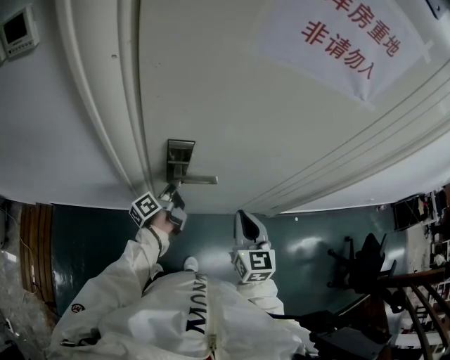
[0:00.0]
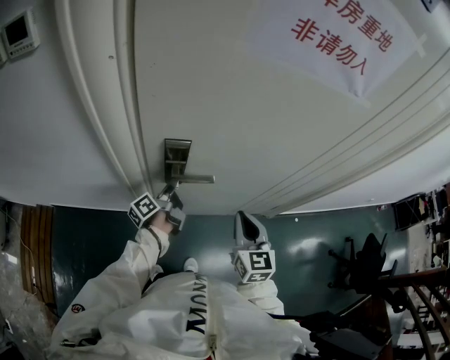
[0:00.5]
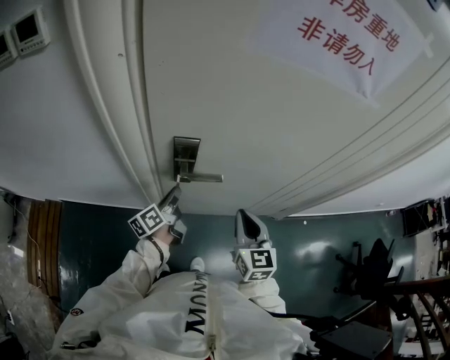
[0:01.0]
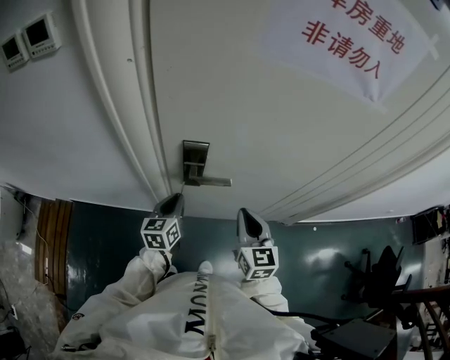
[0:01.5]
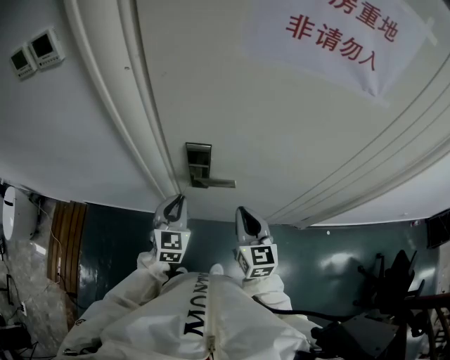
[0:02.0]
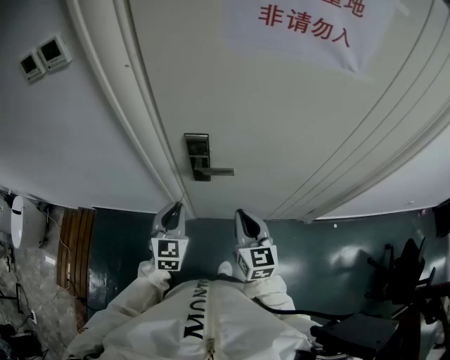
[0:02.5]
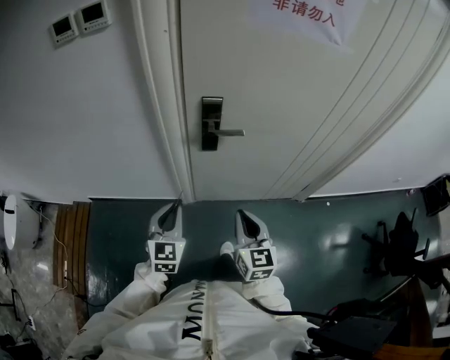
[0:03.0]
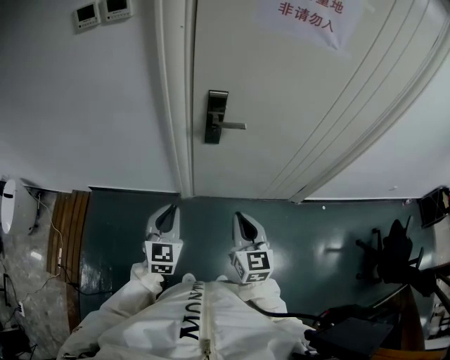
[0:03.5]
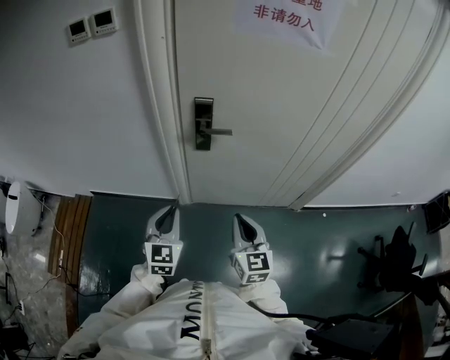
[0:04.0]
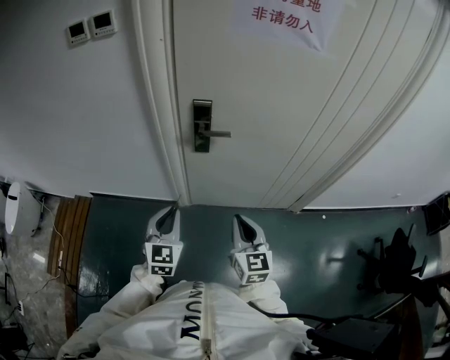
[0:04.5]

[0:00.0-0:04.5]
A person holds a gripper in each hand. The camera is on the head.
0:00.0 to 0:02.0: The left gripper is displaced upward and backward by approximately 15 cm, and twists about 90 degrees clockwise, seen from behind; the right gripper changes place by about 5 cm.
0:02.0 to 0:04.5: Both grippers travel together backward, approximately 25 cm.

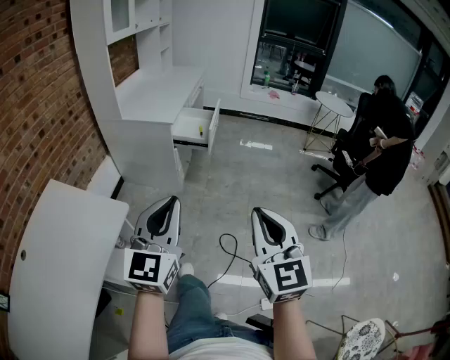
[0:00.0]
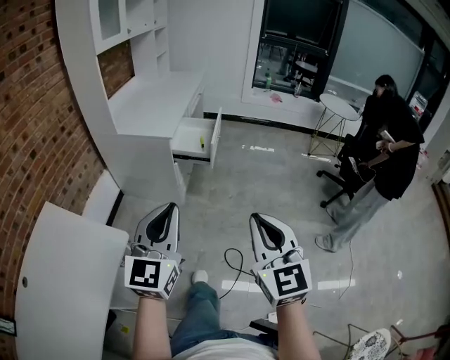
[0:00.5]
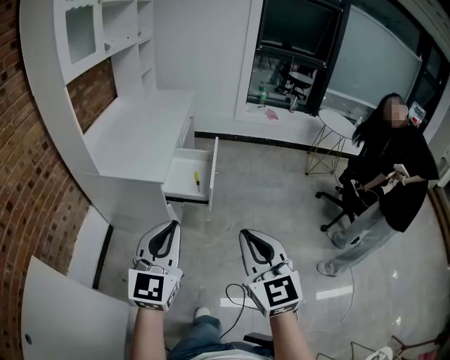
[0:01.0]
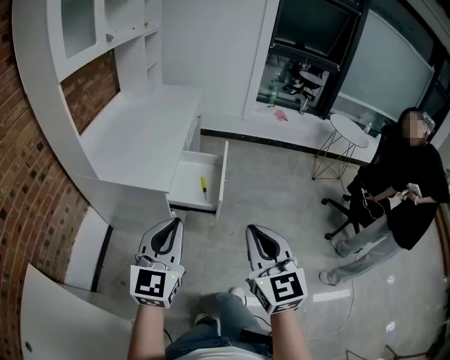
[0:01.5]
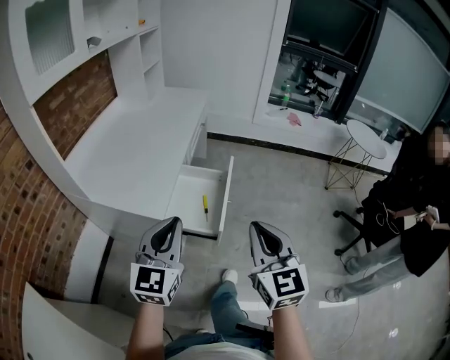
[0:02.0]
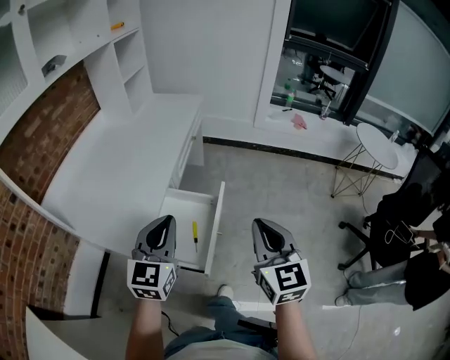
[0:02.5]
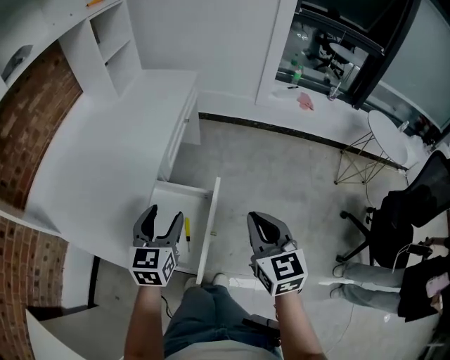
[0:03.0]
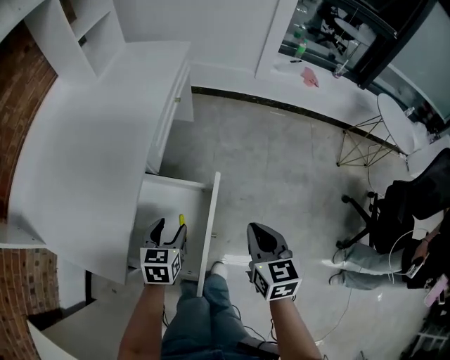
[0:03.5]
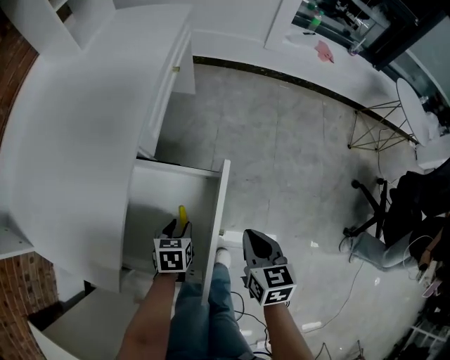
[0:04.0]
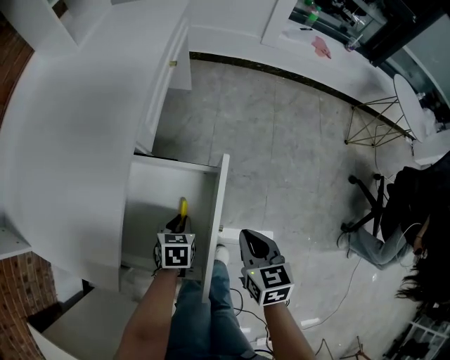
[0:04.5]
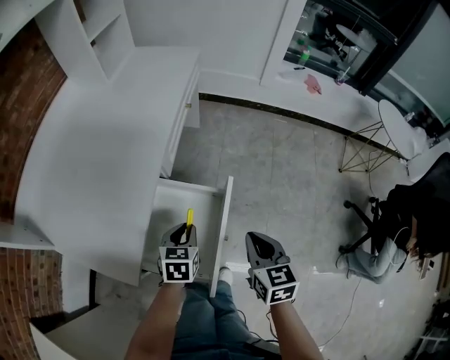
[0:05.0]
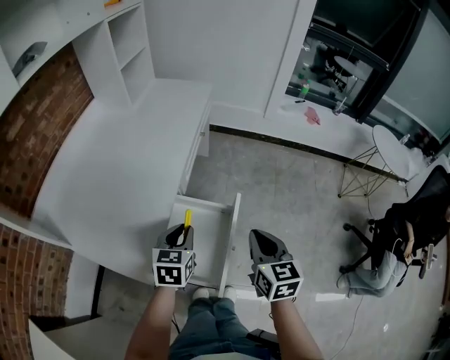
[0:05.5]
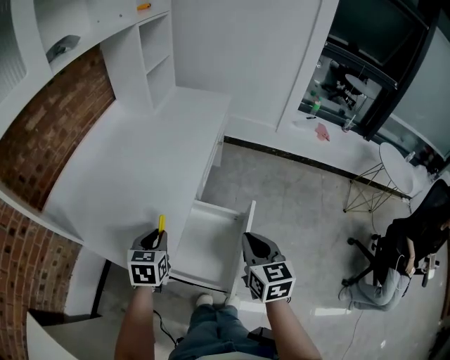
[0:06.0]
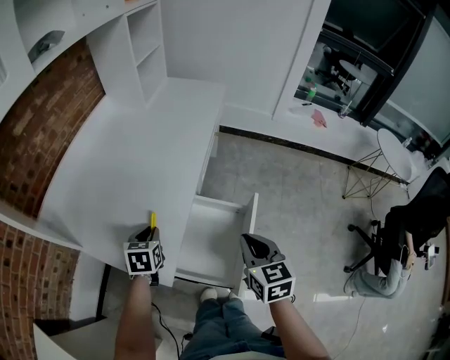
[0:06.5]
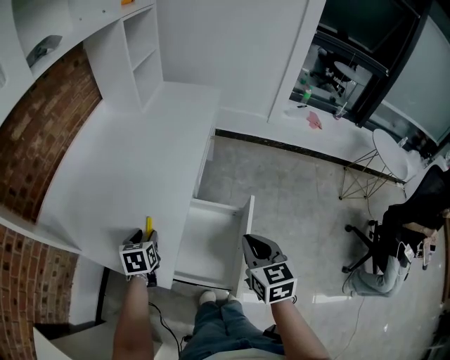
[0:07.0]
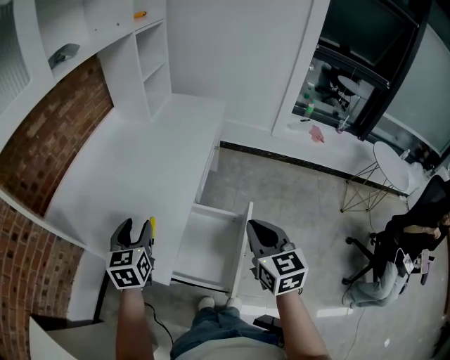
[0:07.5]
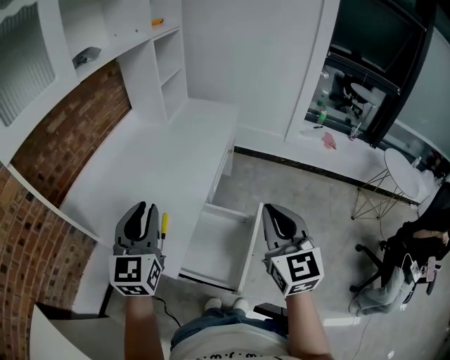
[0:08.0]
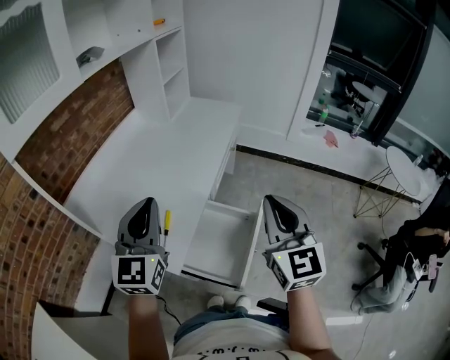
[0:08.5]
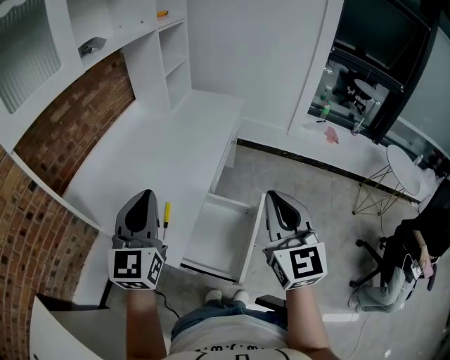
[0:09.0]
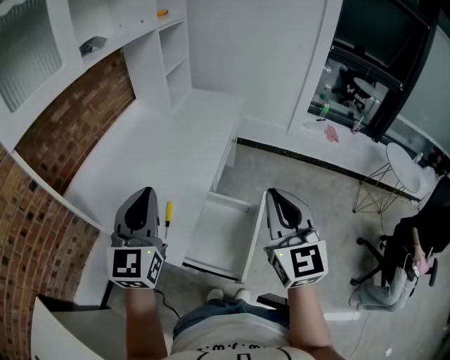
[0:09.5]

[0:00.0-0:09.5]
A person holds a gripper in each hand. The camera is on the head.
0:00.0 to 0:02.0: The pair of grippers is taken forward, about 60 cm.
0:02.0 to 0:04.0: Both grippers move downward and forward, roughly 50 cm. The left gripper points its fingers some 60 degrees further downward, and opens. Meanwhile the right gripper tips its fingers downward by about 30 degrees.
0:04.0 to 0:05.5: The grippers both shift upward by some 25 cm. The left gripper changes its angle by about 30 degrees, and closes its fingers.
0:05.5 to 0:07.5: The left gripper goes approximately 20 cm to the left and upward, swivels about 20 degrees, and opens. Meanwhile the right gripper travels upward and to the left by approximately 10 cm.
0:07.5 to 0:09.5: Both grippers move upward, roughly 15 cm. The left gripper changes its angle by approximately 30 degrees, and closes its fingers; the right gripper changes its angle by approximately 20 degrees.

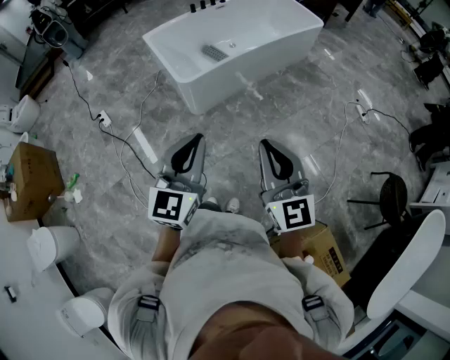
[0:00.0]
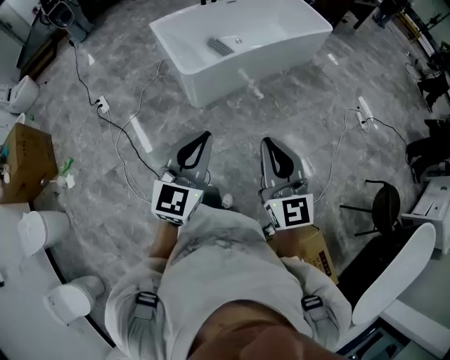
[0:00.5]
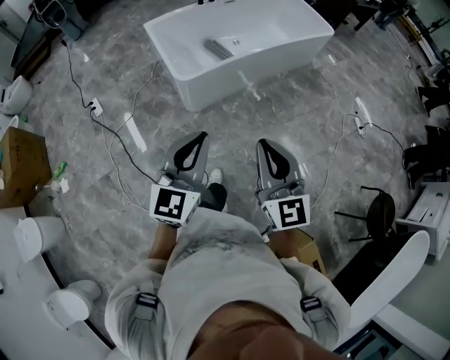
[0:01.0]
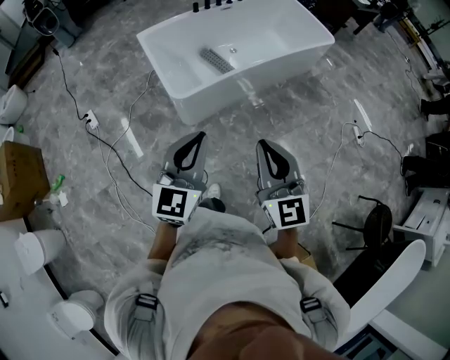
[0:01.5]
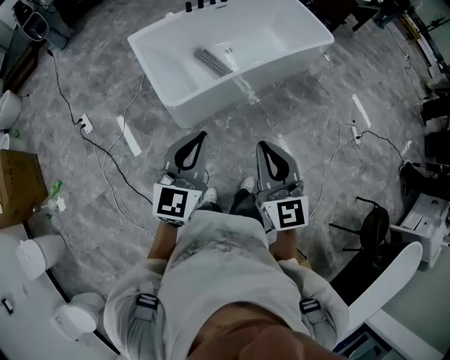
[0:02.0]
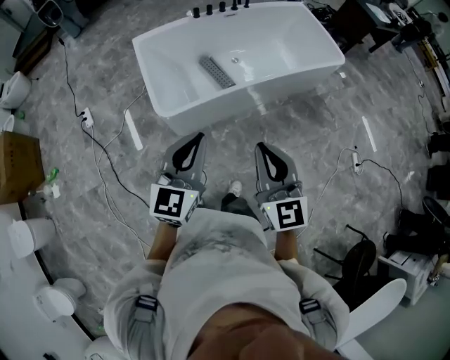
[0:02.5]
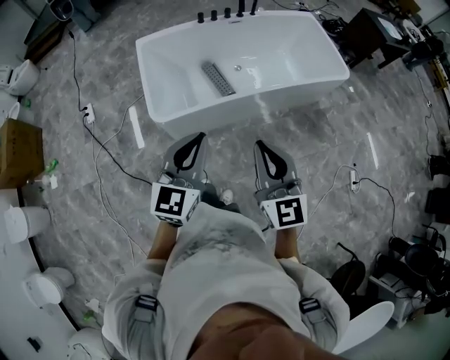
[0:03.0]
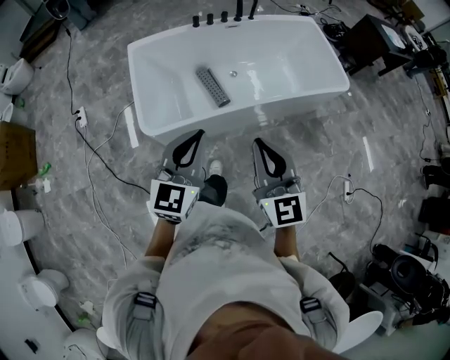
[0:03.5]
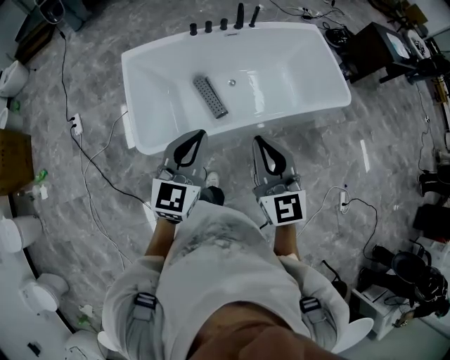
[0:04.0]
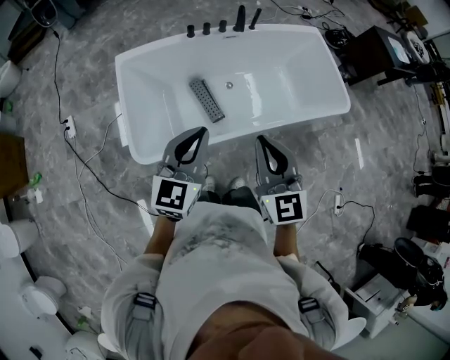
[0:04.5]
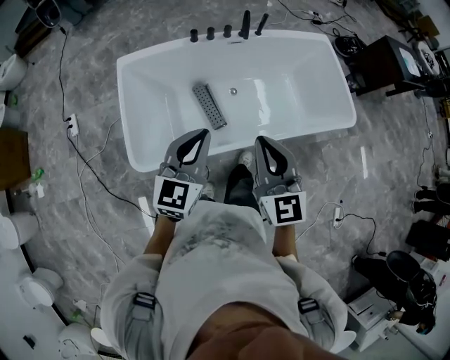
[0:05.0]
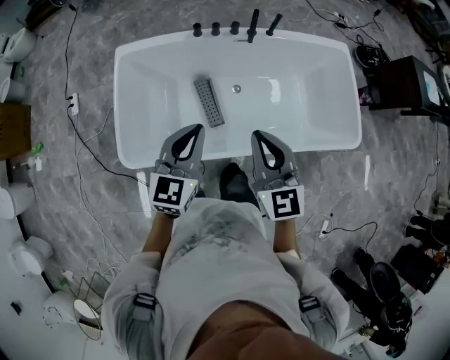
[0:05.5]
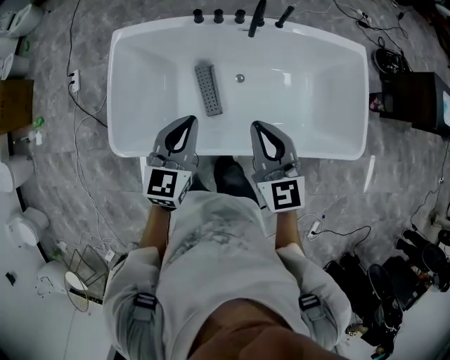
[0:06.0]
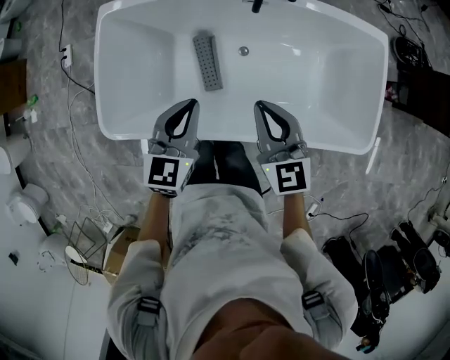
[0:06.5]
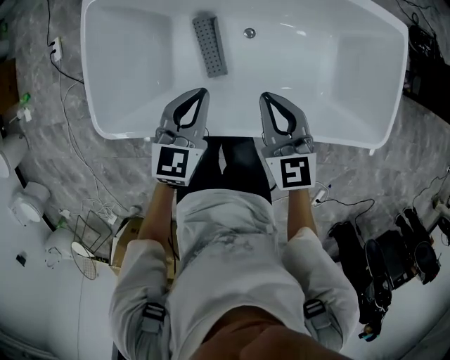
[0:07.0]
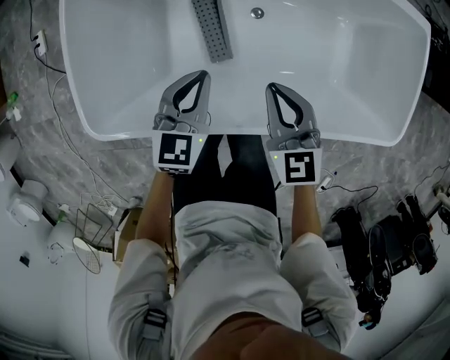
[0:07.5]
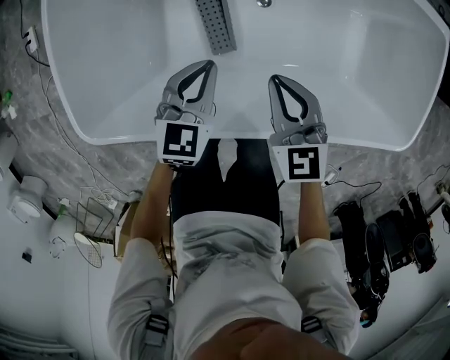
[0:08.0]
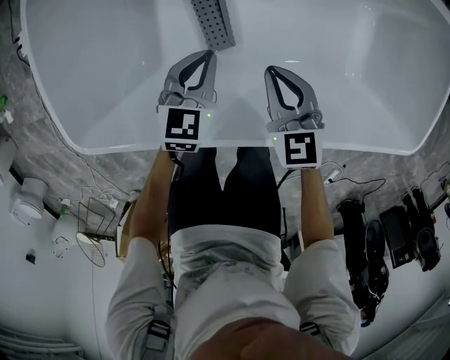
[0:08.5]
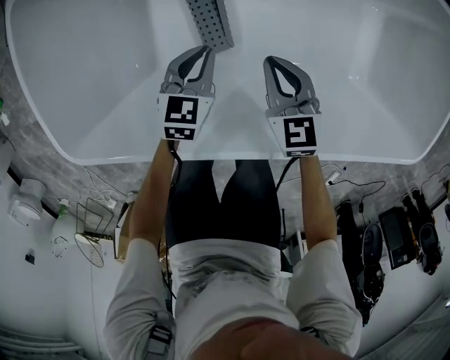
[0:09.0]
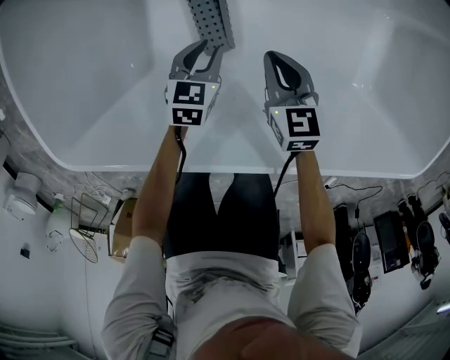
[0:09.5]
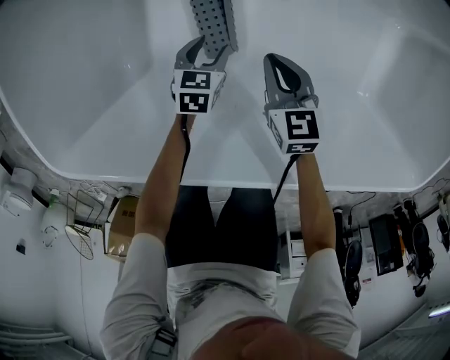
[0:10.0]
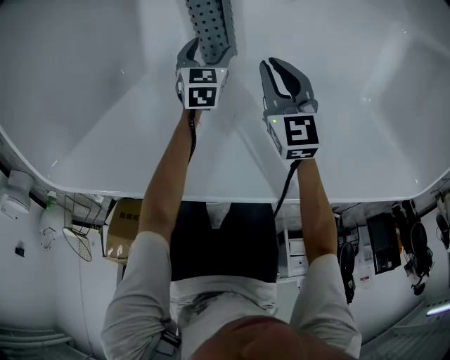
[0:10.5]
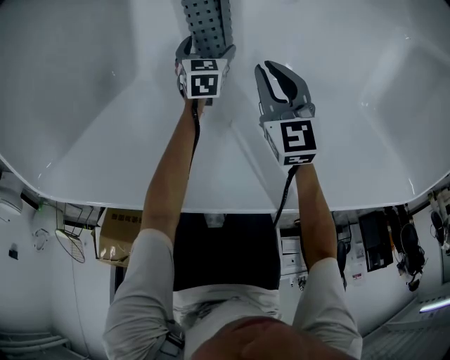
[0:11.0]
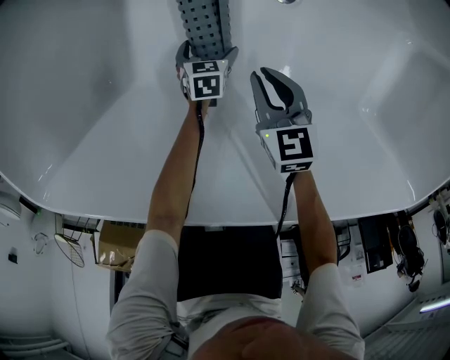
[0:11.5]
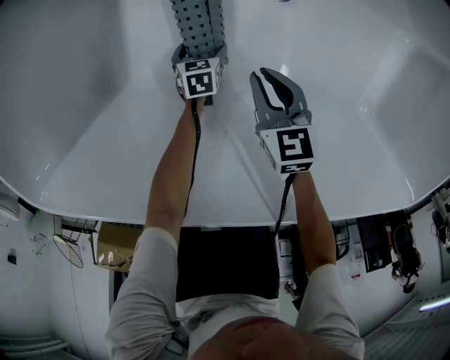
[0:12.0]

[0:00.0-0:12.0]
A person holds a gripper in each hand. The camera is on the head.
0:00.0 to 0:02.0: Both grippers travel together forward, about 30 cm.
0:02.0 to 0:04.0: Both grippers are carried forward and to the right, about 40 cm.
0:04.0 to 0:06.0: The grippers both shift forward and to the right by roughly 35 cm. The left gripper rotates some 20 degrees, while the right gripper rotates roughly 20 degrees.
0:06.0 to 0:08.0: The two grippers go some 35 cm downward.
0:08.0 to 0:10.0: The grippers both shift downward by roughly 30 cm. The left gripper changes its angle by some 30 degrees, and opens.
0:10.0 to 0:12.0: The left gripper is displaced downward by approximately 20 cm, swivels some 20 degrees, and opens up. Meanwhile the right gripper goes some 10 cm downward.
